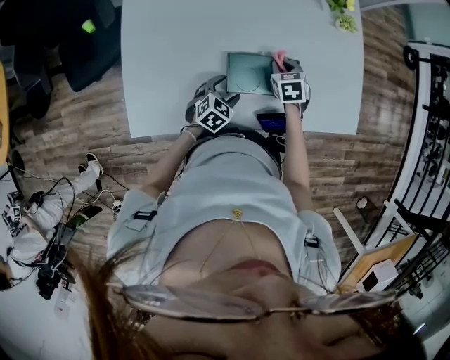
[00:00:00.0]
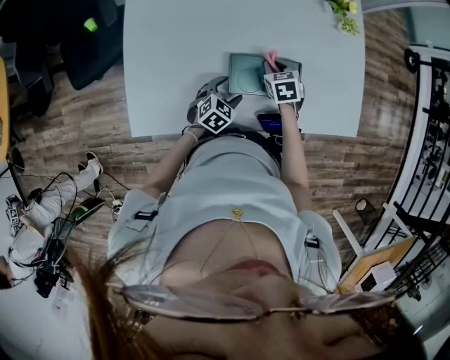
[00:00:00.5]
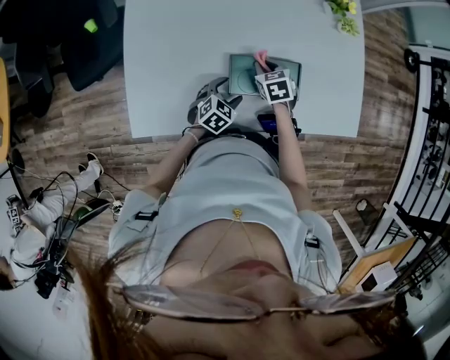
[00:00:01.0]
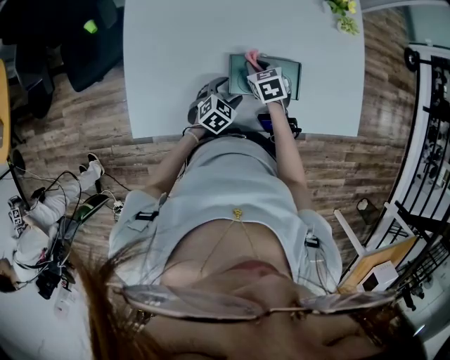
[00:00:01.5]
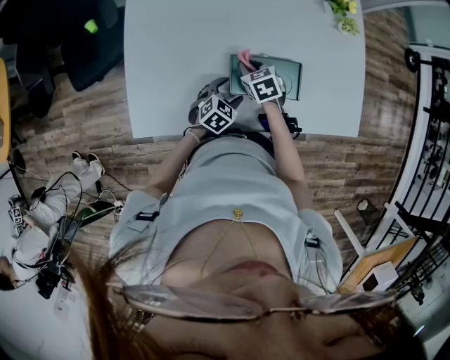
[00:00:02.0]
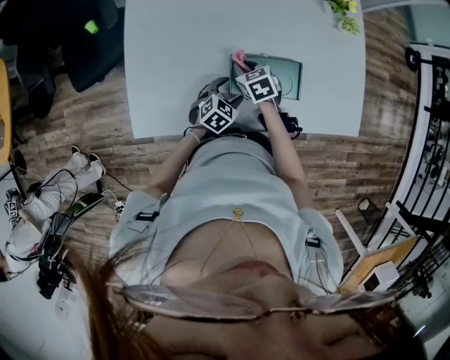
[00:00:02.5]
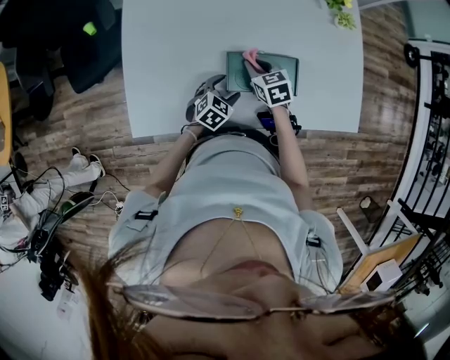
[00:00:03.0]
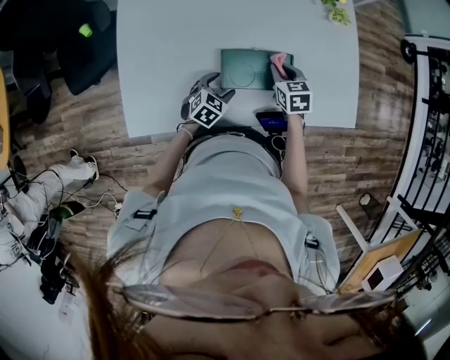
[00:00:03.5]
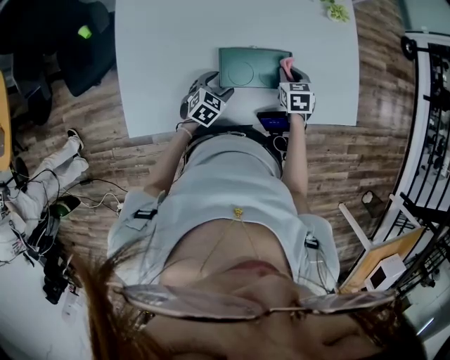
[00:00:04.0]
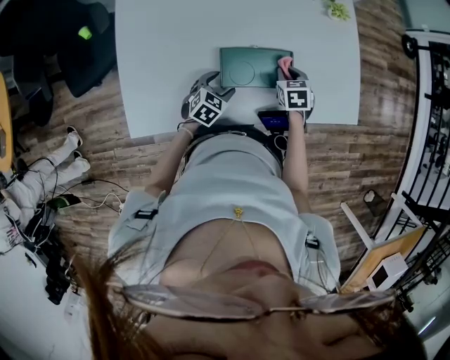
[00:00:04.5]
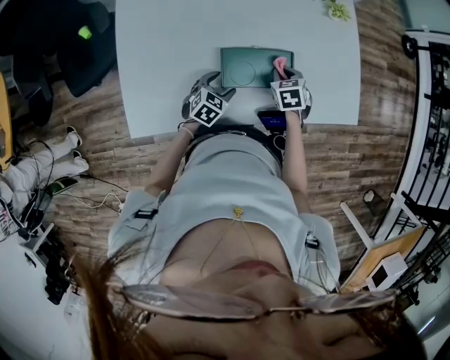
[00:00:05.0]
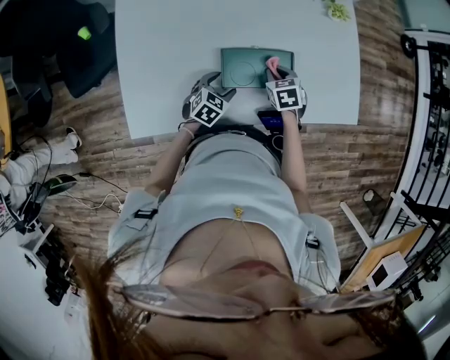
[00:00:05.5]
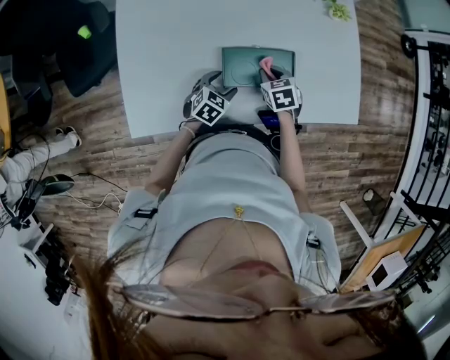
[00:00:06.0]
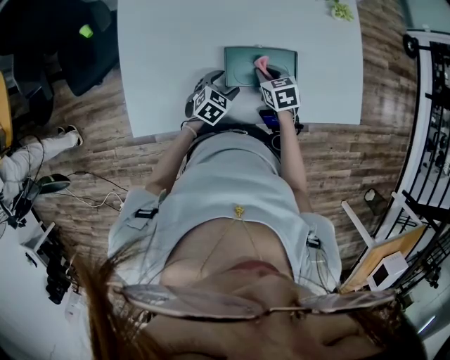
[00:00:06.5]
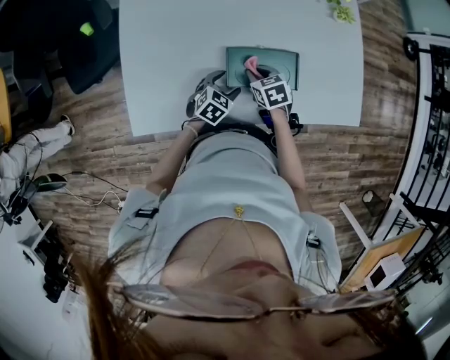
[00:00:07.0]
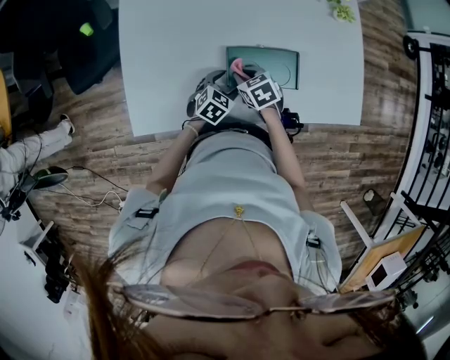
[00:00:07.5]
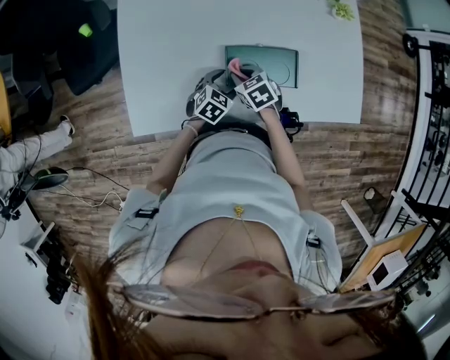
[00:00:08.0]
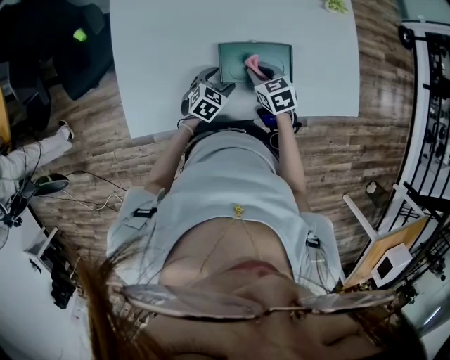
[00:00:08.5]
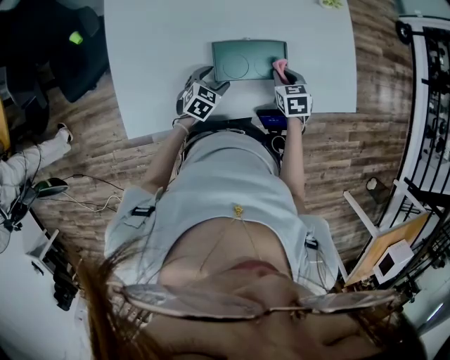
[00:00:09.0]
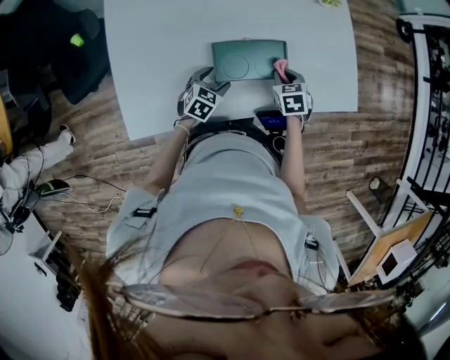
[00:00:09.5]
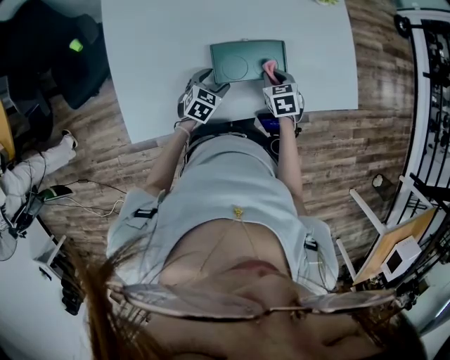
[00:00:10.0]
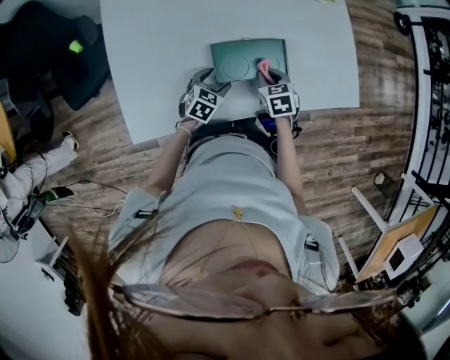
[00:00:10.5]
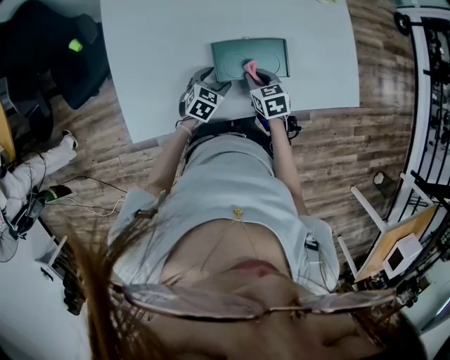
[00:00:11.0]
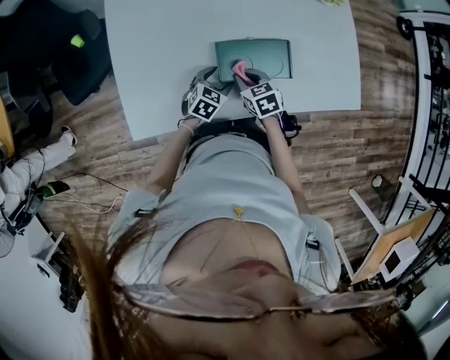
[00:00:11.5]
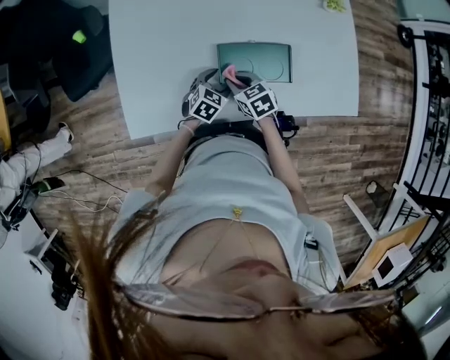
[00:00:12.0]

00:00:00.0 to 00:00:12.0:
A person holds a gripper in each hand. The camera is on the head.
00:00:00.0 to 00:00:02.0: The right gripper travels to the left by some 10 cm.
00:00:02.0 to 00:00:04.0: The right gripper shifts roughly 20 cm to the right, and changes its angle by some 20 degrees.
00:00:04.0 to 00:00:06.0: The right gripper travels to the left by roughly 5 cm.
00:00:06.0 to 00:00:08.0: The right gripper travels to the left by roughly 10 cm.
00:00:08.0 to 00:00:10.0: The right gripper is displaced to the right by roughly 15 cm, and turns by roughly 20 degrees.
00:00:10.0 to 00:00:12.0: The right gripper heads to the left, covering some 15 cm, and changes its angle by roughly 20 degrees.

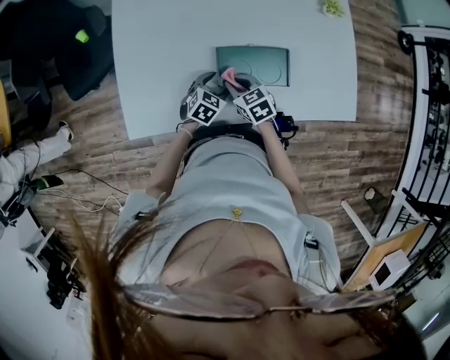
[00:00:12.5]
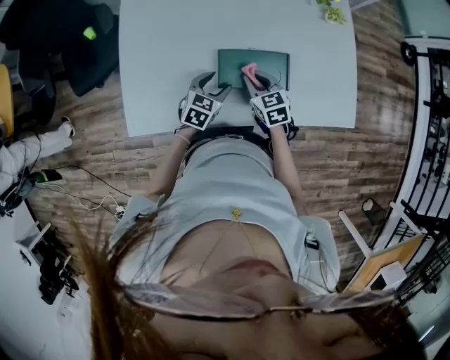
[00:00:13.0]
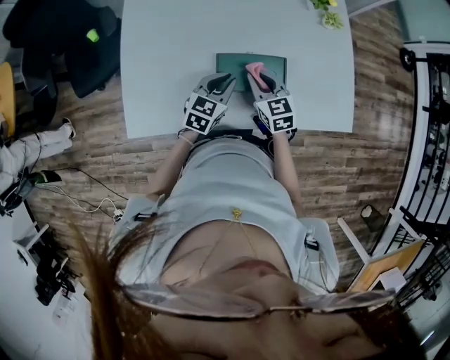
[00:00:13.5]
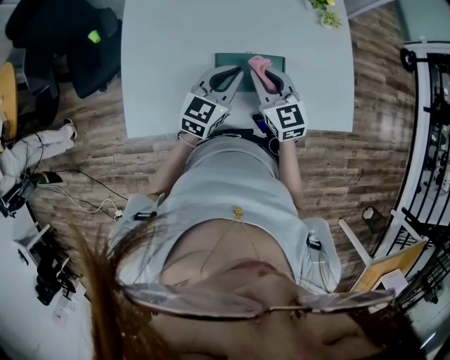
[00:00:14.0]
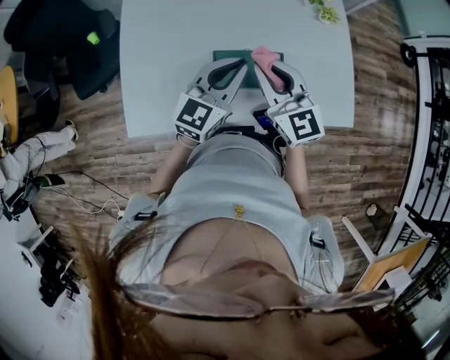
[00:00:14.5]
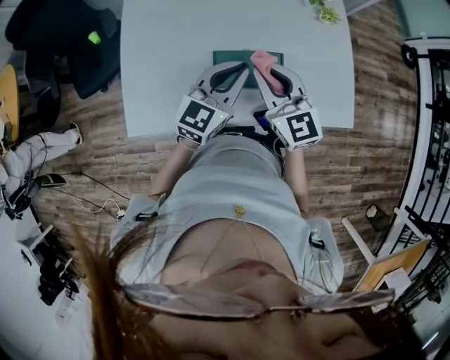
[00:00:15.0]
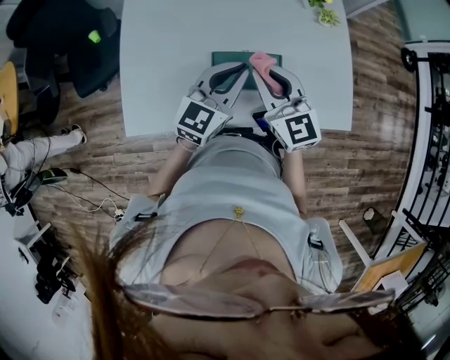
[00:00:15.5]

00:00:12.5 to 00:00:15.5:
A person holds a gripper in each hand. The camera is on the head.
00:00:12.5 to 00:00:14.0: The right gripper moves upward and to the right, roughly 20 cm, and rotates some 30 degrees, while the left gripper moves upward, some 20 cm, tilts its fingers roughly 30 degrees upward, and closes.
00:00:14.0 to 00:00:15.5: Both grippers travel together upward, about 5 cm.

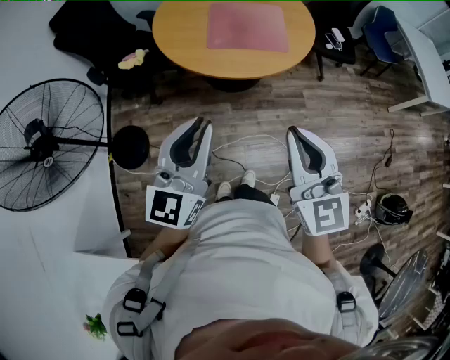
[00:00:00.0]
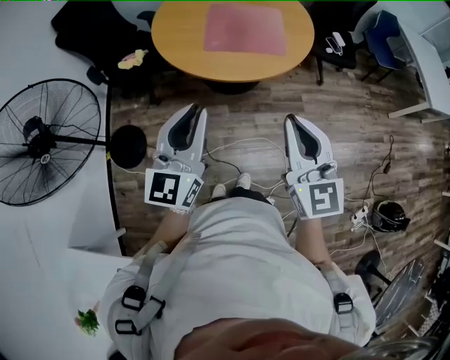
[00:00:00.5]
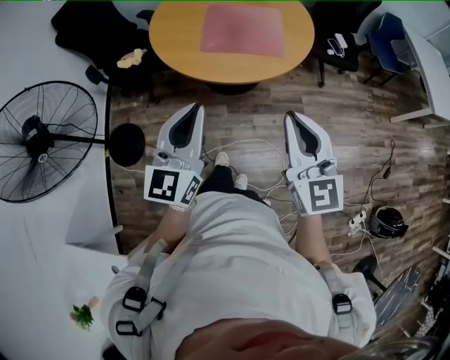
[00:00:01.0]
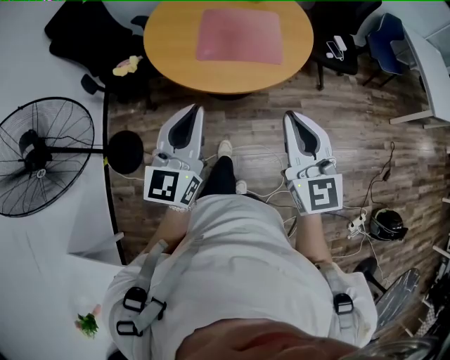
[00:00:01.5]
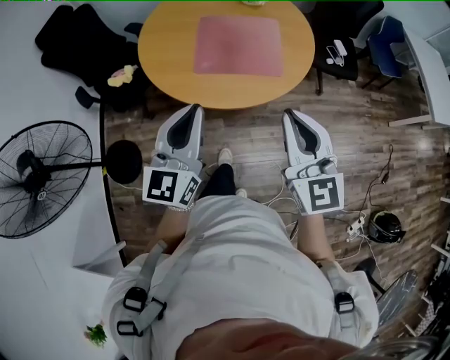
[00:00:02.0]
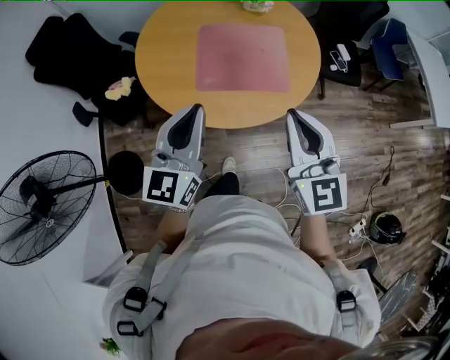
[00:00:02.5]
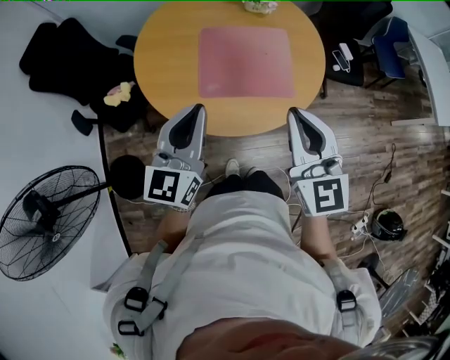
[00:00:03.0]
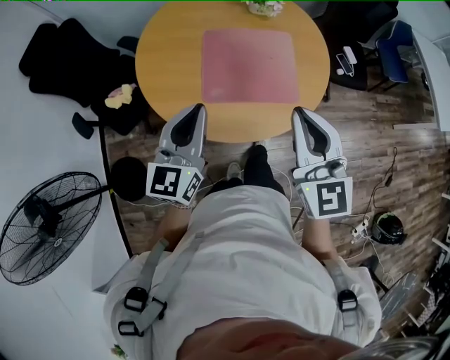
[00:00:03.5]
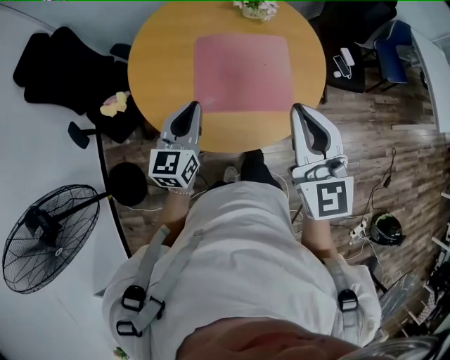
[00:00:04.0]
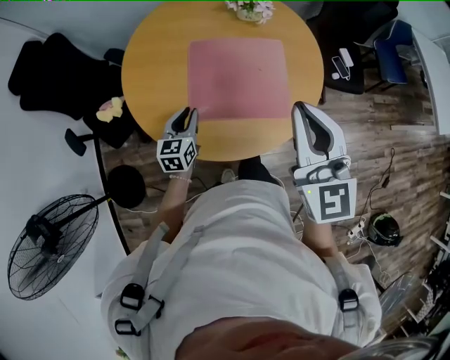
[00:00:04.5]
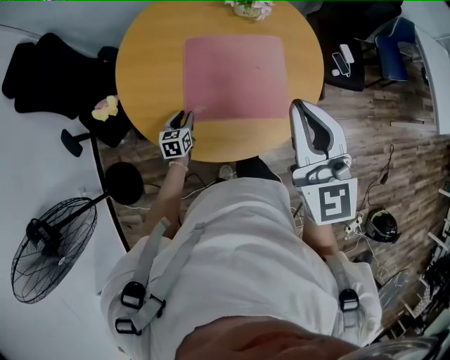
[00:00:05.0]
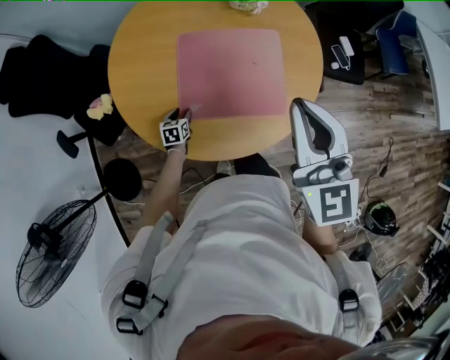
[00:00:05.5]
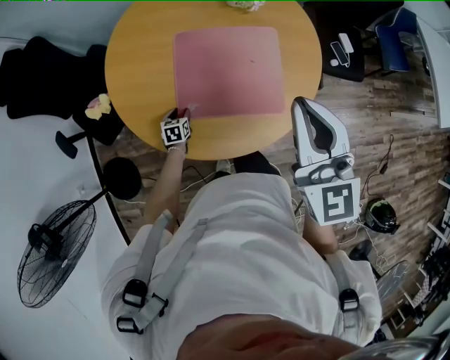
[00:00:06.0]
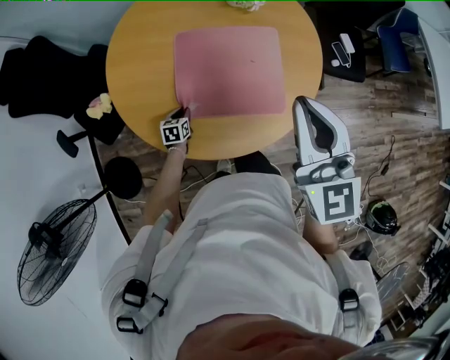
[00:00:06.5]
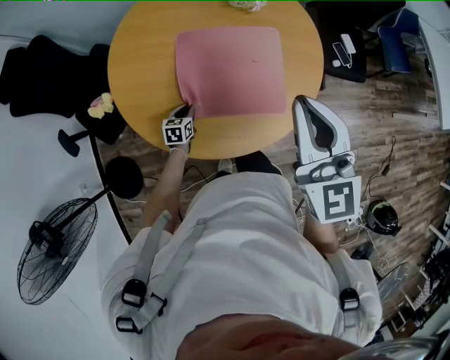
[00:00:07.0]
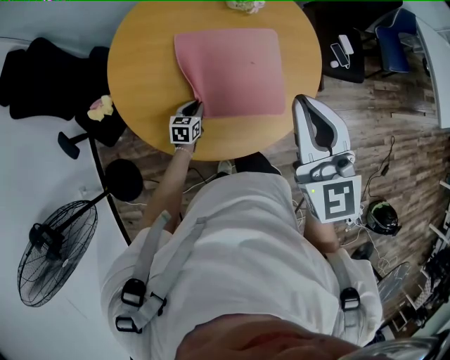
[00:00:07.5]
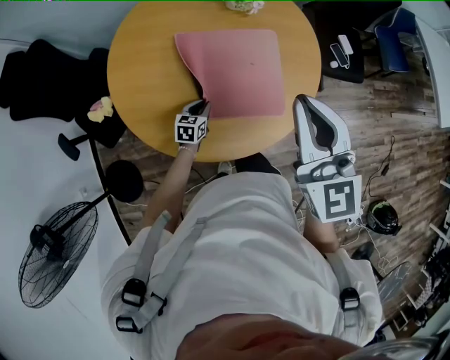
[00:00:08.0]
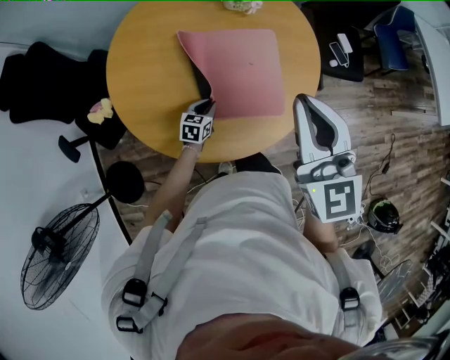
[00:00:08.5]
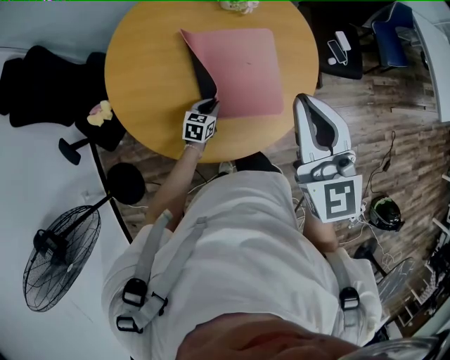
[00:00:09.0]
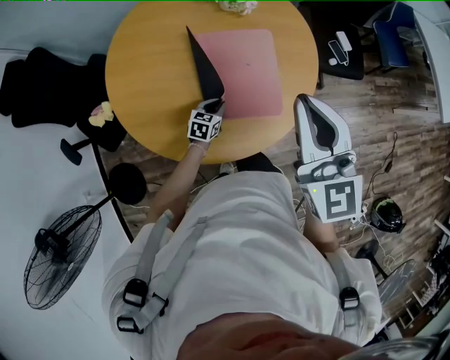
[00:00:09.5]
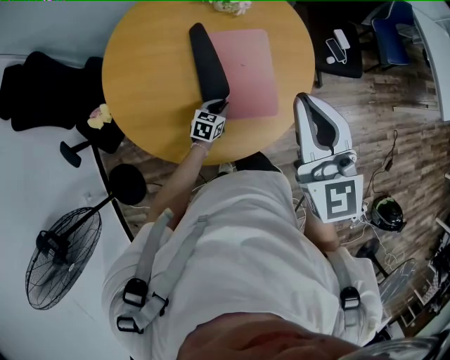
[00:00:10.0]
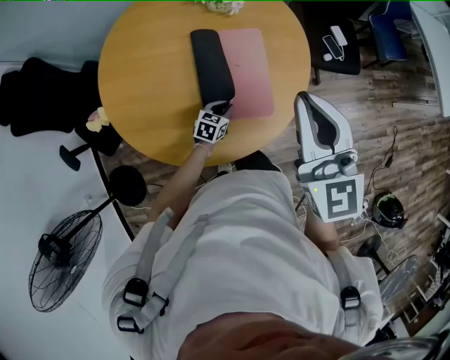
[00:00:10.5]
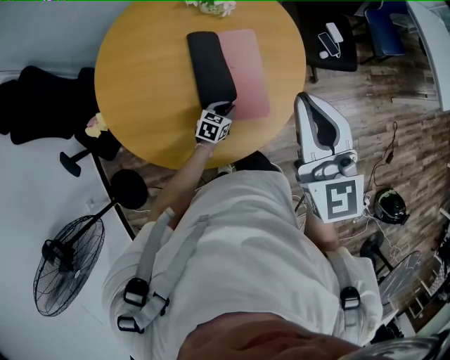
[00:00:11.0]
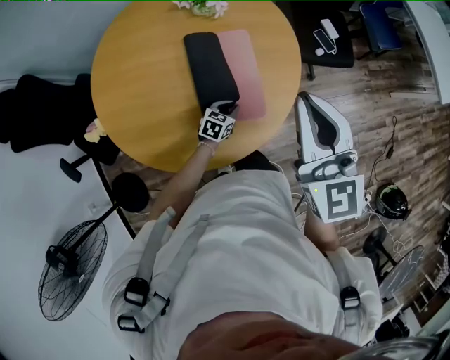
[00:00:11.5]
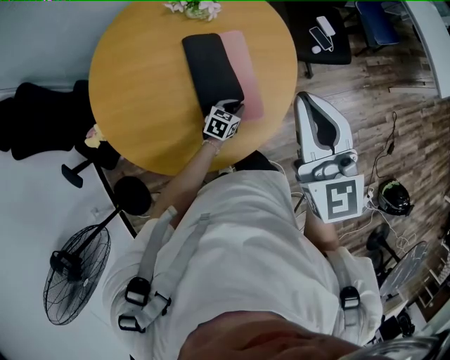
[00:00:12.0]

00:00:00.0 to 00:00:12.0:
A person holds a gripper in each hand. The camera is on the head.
00:00:00.0 to 00:00:02.0: The two grippers go about 20 cm forward.
00:00:02.0 to 00:00:04.0: The right gripper goes approximately 25 cm forward. The left gripper is displaced forward and downward by about 30 cm.
00:00:04.0 to 00:00:06.0: The right gripper travels forward and to the right by roughly 10 cm; the left gripper is displaced downward by roughly 40 cm, angles its fingers downward, by approximately 40 degrees, and opens.
00:00:06.0 to 00:00:08.0: The left gripper travels to the right and upward by about 15 cm, changes its angle by approximately 20 degrees, and closes its fingers.
00:00:08.0 to 00:00:10.0: The left gripper travels to the right by approximately 10 cm.
00:00:10.0 to 00:00:12.0: The left gripper shifts approximately 10 cm to the right, while the right gripper heads to the right, covering about 5 cm.
